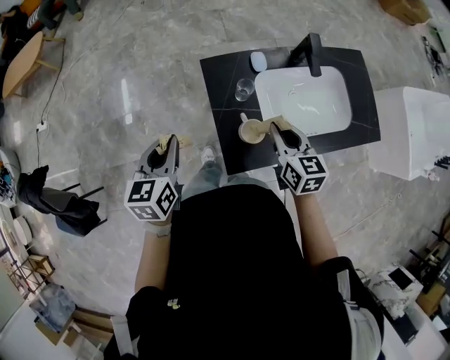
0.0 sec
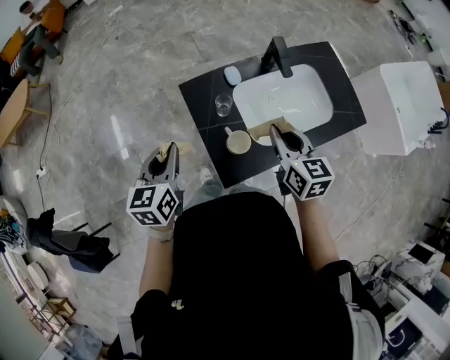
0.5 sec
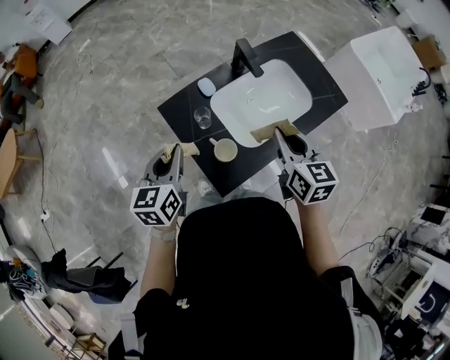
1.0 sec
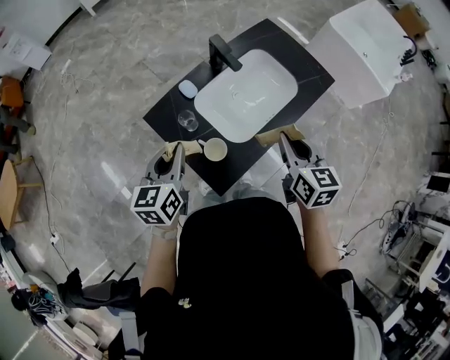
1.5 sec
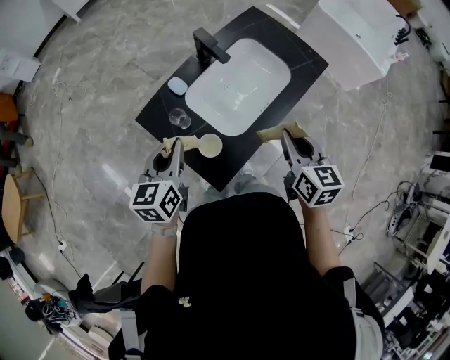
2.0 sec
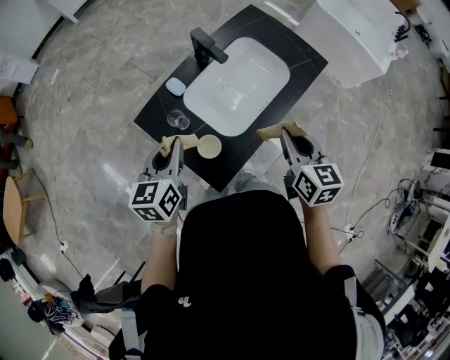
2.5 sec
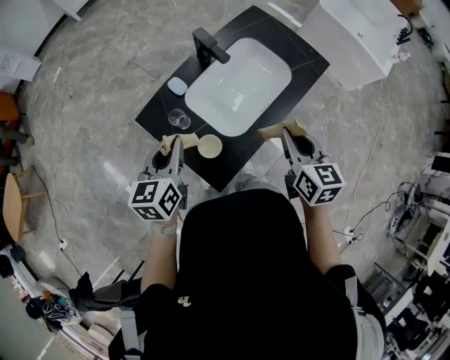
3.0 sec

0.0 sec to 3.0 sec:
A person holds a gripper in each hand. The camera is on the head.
0.0 sec to 1.5 sec: The right gripper ends up some 20 cm from where it was, and swivels approximately 30 degrees. The left gripper moves roughly 15 cm, and rotates about 30 degrees.
1.5 sec to 3.0 sec: The grippers make only small movements.

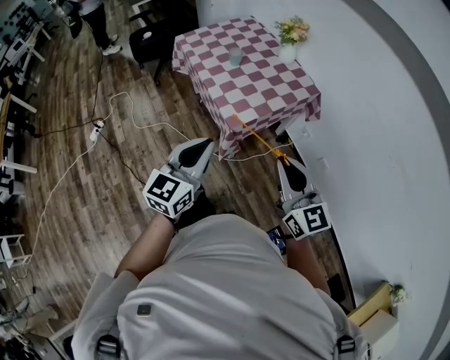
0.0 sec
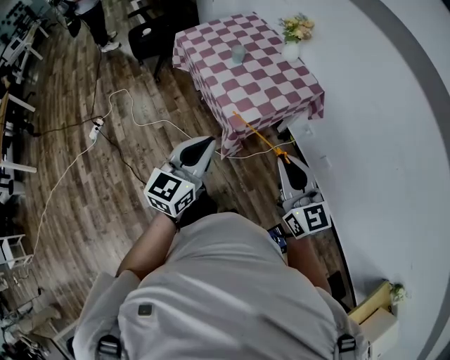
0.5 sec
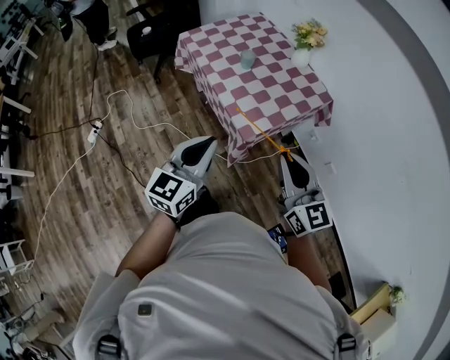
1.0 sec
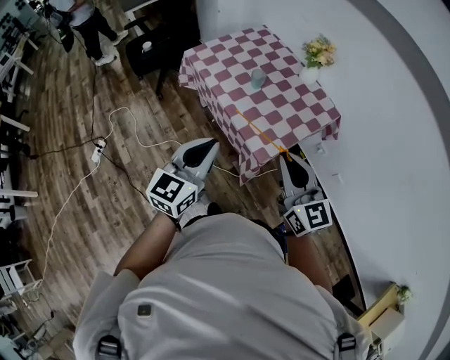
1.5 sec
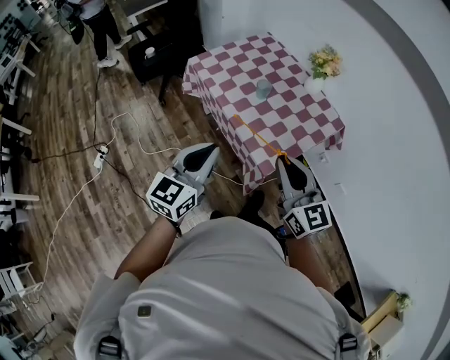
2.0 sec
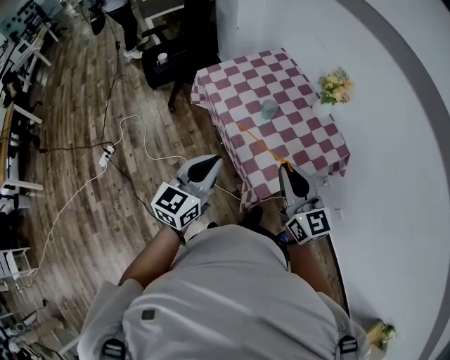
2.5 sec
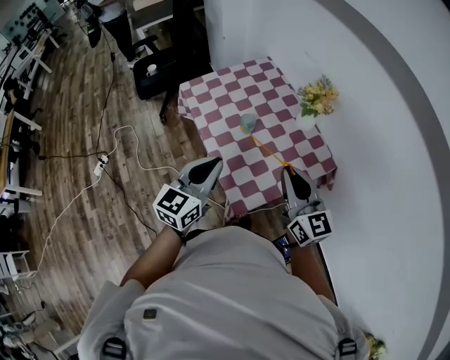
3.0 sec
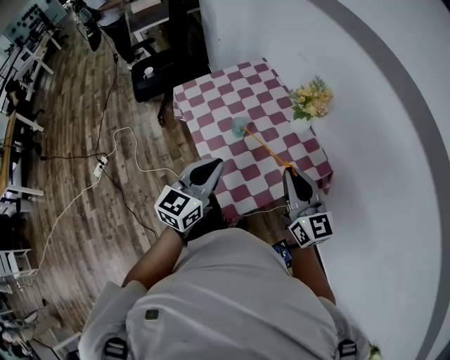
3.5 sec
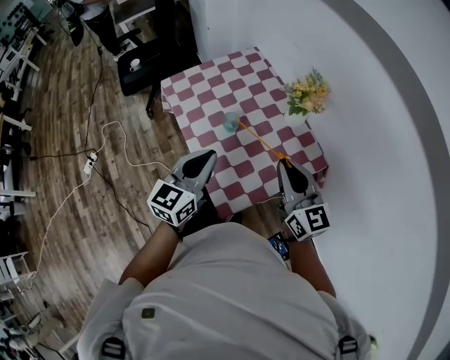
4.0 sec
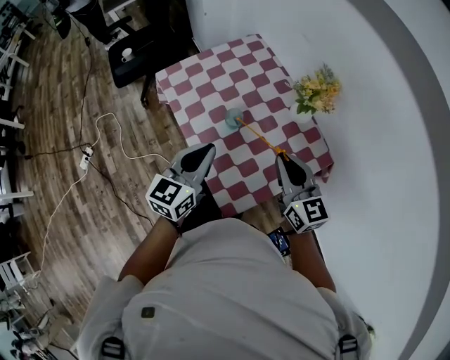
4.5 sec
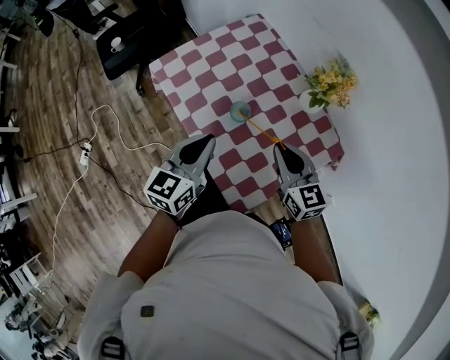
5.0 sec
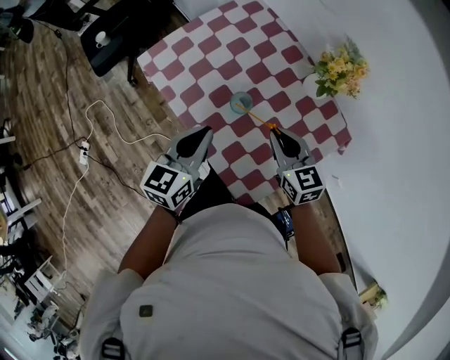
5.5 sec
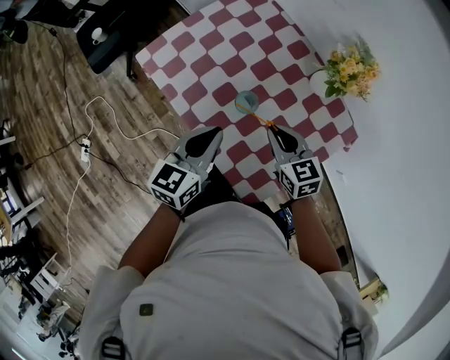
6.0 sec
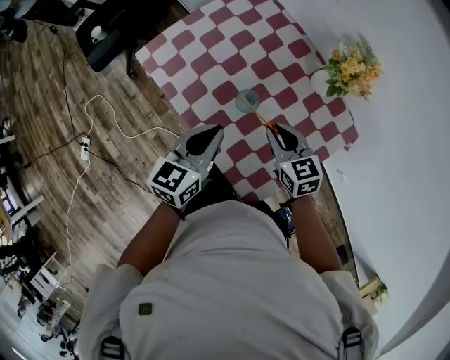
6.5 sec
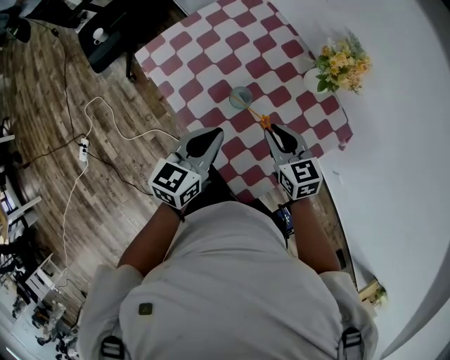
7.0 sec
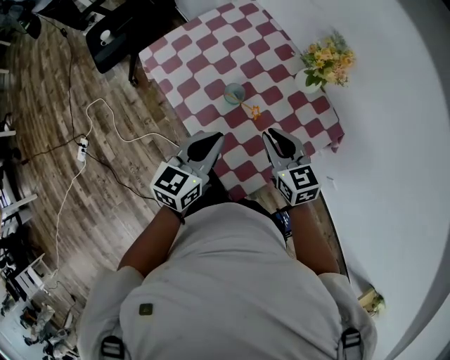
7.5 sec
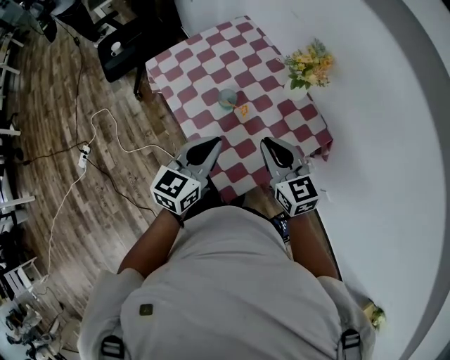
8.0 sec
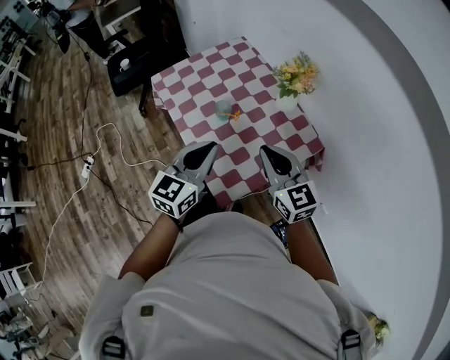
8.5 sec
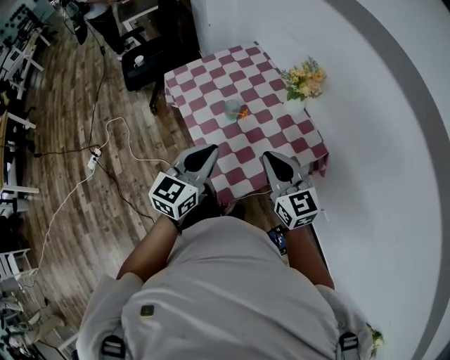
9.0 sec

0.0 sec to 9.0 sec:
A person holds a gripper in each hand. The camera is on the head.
0.0 sec to 2.0 sec: Both grippers travel together forward and to the left, roughly 30 cm.
2.0 sec to 4.5 sec: The grippers both shift forward and to the right by some 30 cm.
4.5 sec to 7.0 sec: The right gripper heads downward, forward and to the left, covering some 15 cm, and rotates roughly 20 degrees. The left gripper heads downward and forward, covering roughly 10 cm.
7.0 sec to 9.0 sec: The left gripper is displaced backward and upward by approximately 20 cm, and changes its angle by approximately 20 degrees, while the right gripper heads upward and backward, covering approximately 25 cm, and swivels roughly 30 degrees.

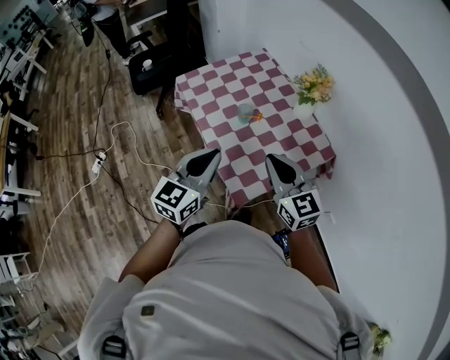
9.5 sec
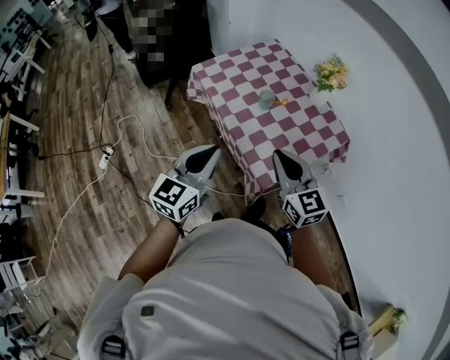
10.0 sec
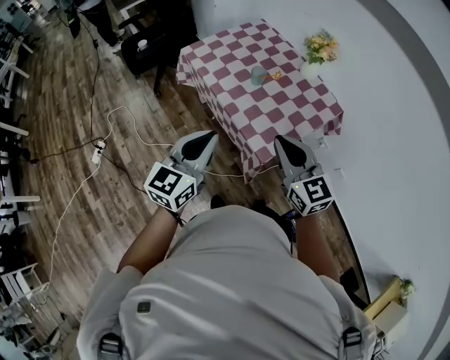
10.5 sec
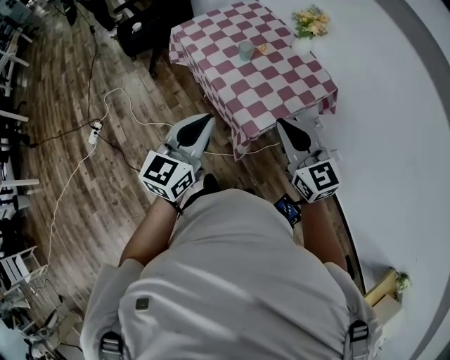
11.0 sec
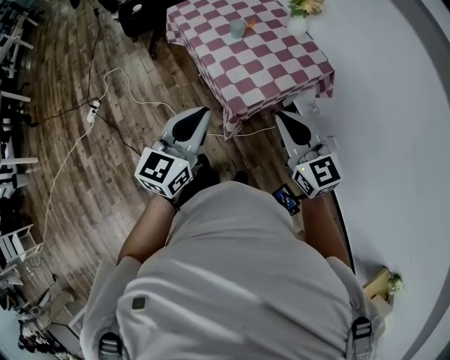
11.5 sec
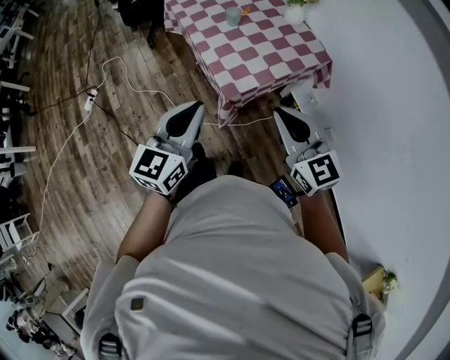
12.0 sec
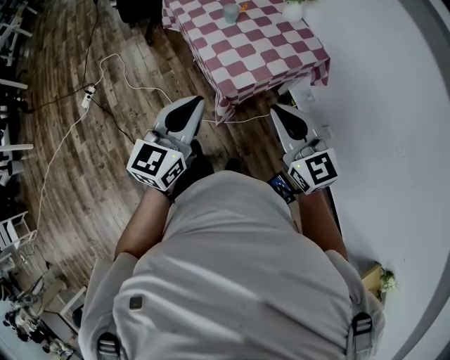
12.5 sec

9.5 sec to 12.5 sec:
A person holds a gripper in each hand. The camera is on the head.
9.5 sec to 11.0 sec: Both grippers move backward, some 15 cm.
11.0 sec to 12.5 sec: Both grippers travel together backward and to the right, some 15 cm.

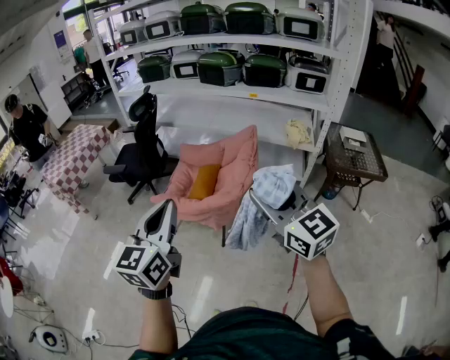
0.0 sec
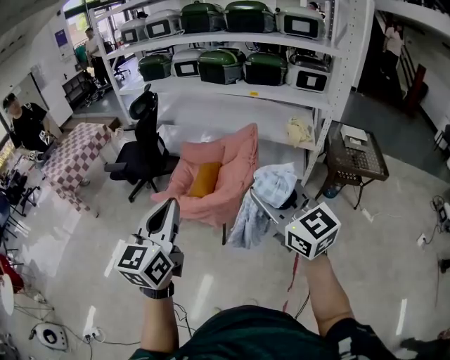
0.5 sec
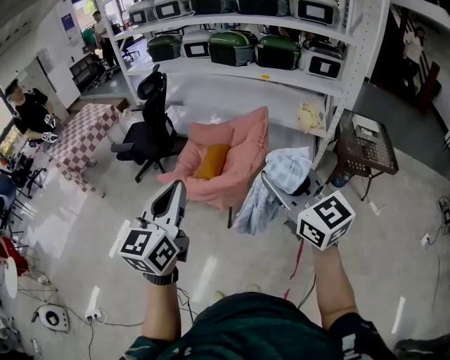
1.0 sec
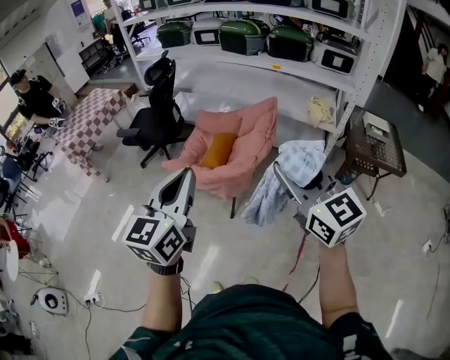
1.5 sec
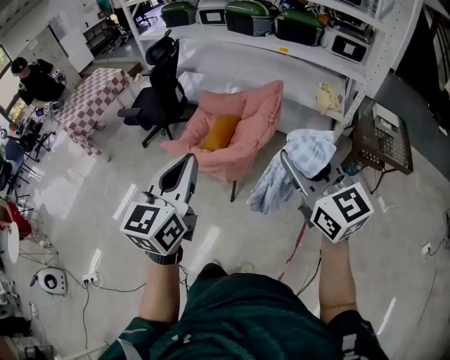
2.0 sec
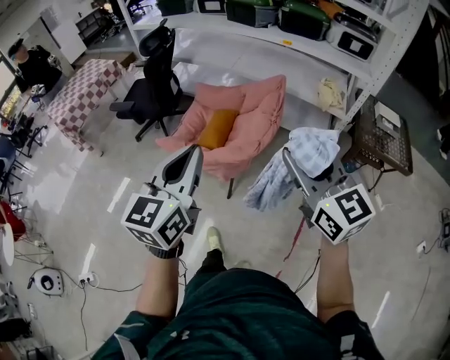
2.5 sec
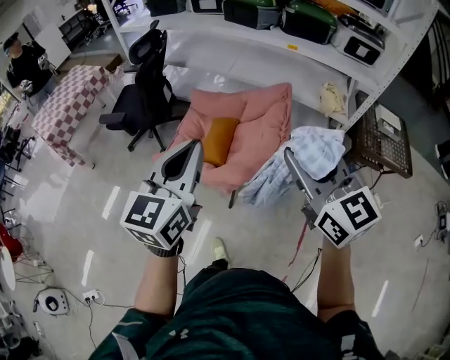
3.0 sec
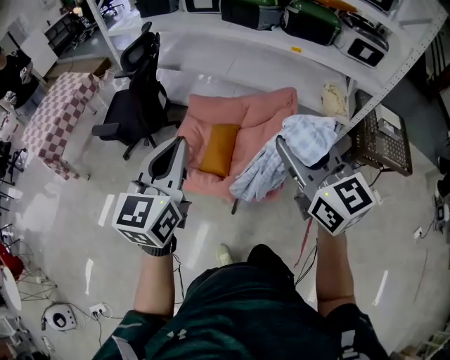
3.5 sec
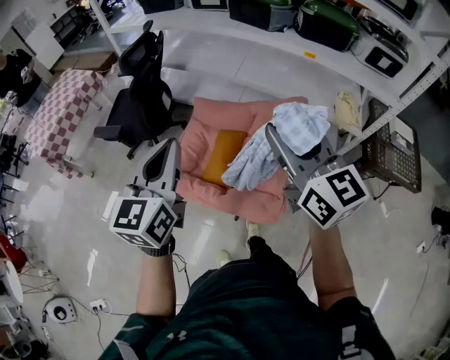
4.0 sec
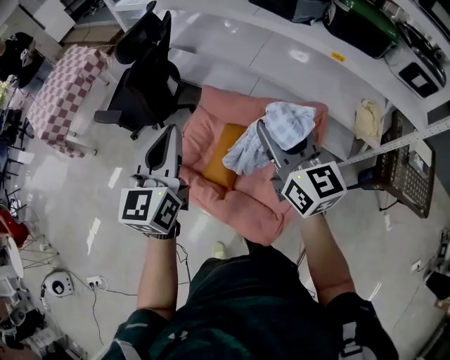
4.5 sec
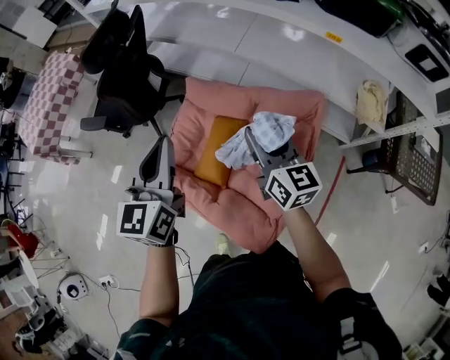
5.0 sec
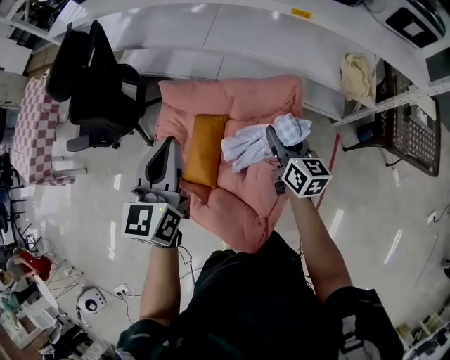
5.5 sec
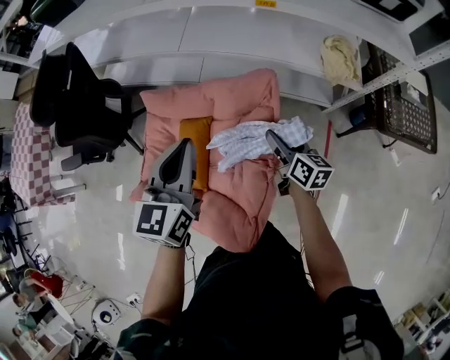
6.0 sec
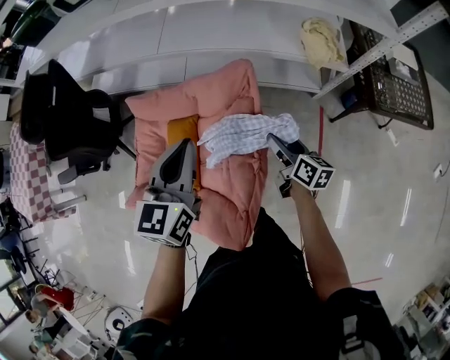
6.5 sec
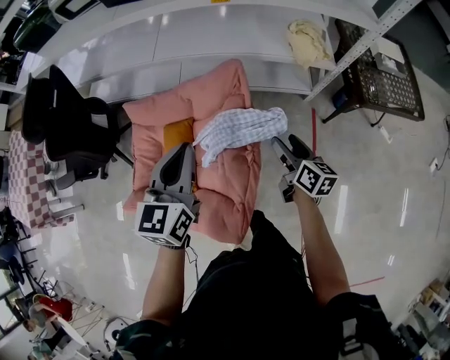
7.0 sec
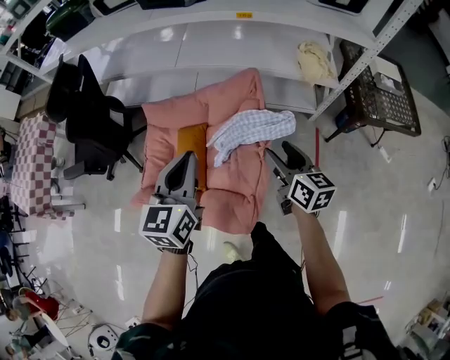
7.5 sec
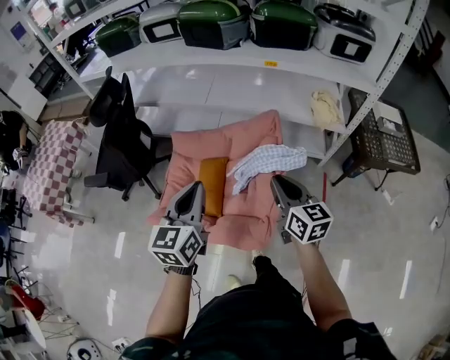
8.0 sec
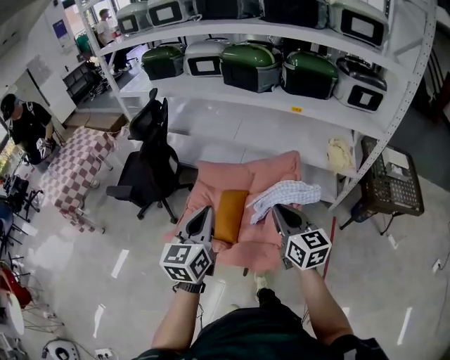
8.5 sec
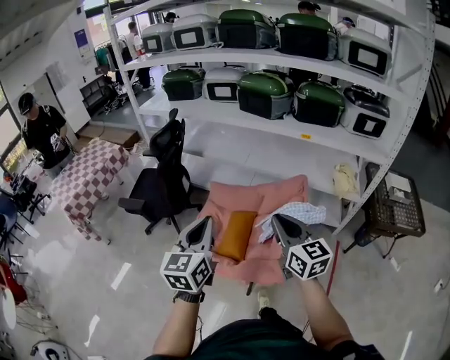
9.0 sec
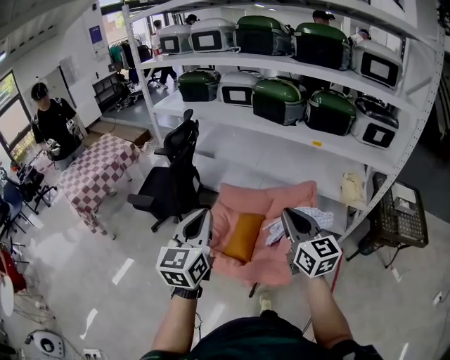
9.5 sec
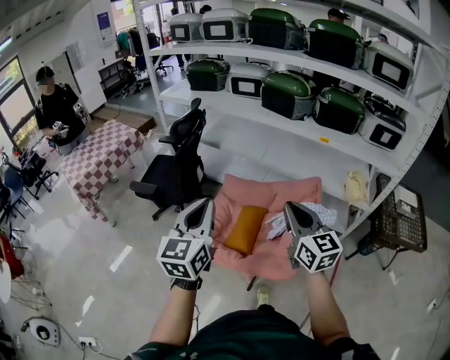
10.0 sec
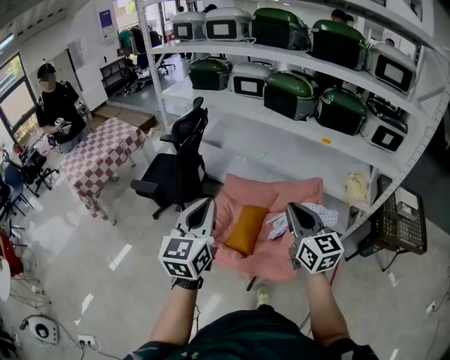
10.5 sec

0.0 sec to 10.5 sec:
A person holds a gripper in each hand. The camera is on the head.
0.0 sec to 2.0 sec: Both grippers travel together to the right, roughly 10 cm.
2.0 sec to 4.0 sec: Both grippers are carried forward, about 40 cm.
4.0 sec to 6.5 sec: The left gripper travels to the right, forward and downward by roughly 40 cm, and changes its angle by approximately 20 degrees. The right gripper goes about 50 cm downward and to the right, twists roughly 50 degrees clockwise, seen from behind, and opens up.
6.5 sec to 8.5 sec: The right gripper shifts about 40 cm upward, to the left and backward, changes its angle by approximately 40 degrees, and closes. The left gripper is displaced backward, to the left and upward by some 35 cm.
8.5 sec to 10.5 sec: The left gripper moves to the left and upward, some 15 cm. Meanwhile the right gripper shifts about 10 cm upward and to the left.
